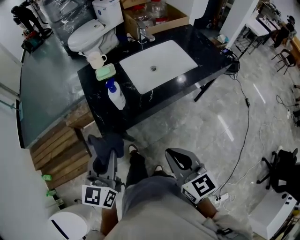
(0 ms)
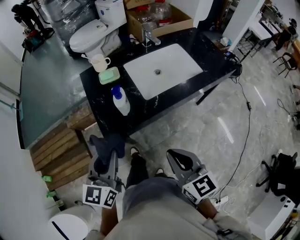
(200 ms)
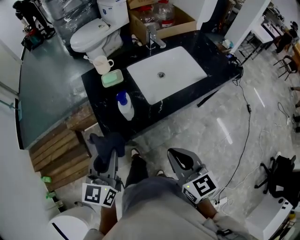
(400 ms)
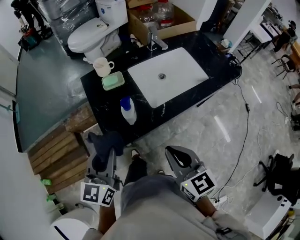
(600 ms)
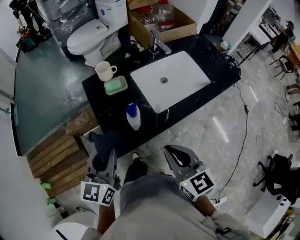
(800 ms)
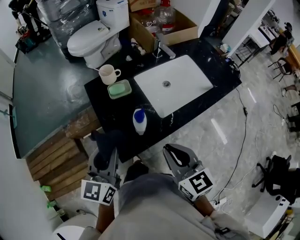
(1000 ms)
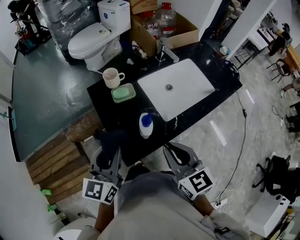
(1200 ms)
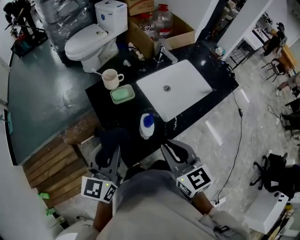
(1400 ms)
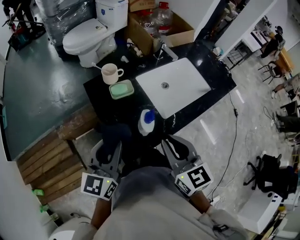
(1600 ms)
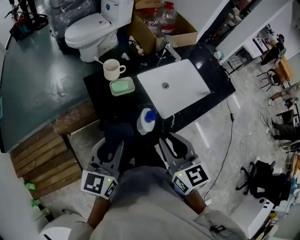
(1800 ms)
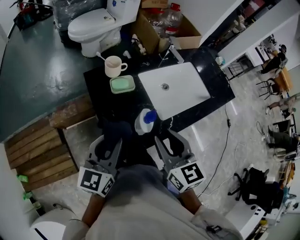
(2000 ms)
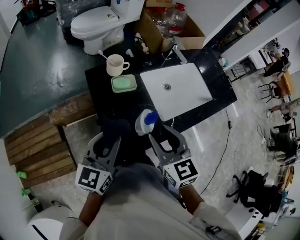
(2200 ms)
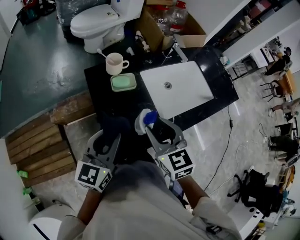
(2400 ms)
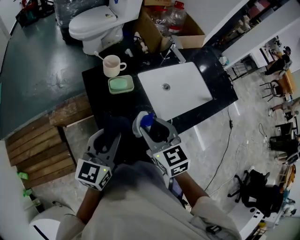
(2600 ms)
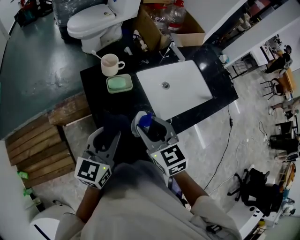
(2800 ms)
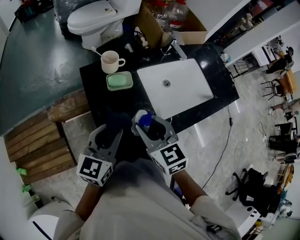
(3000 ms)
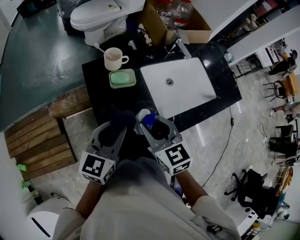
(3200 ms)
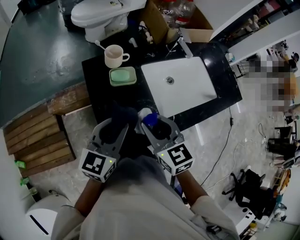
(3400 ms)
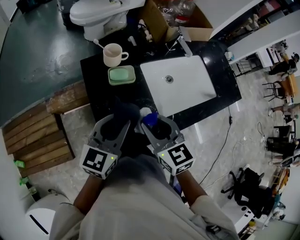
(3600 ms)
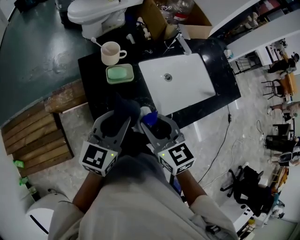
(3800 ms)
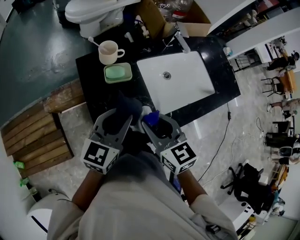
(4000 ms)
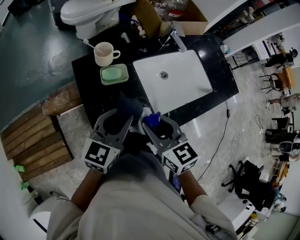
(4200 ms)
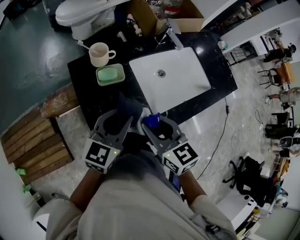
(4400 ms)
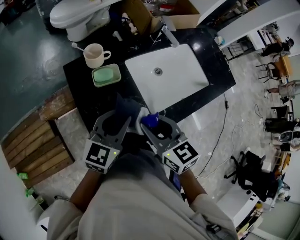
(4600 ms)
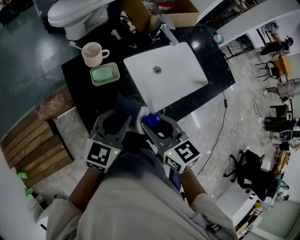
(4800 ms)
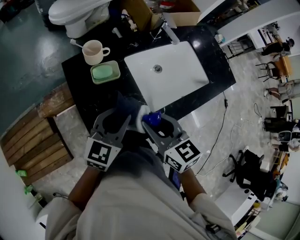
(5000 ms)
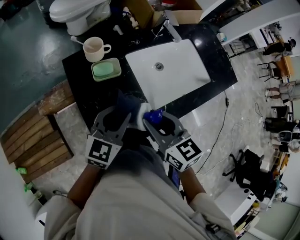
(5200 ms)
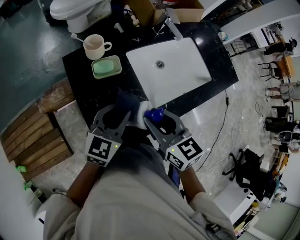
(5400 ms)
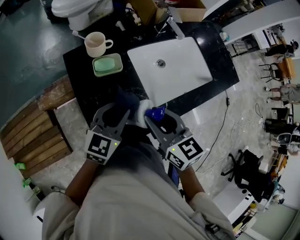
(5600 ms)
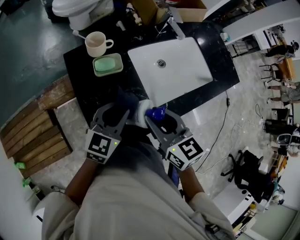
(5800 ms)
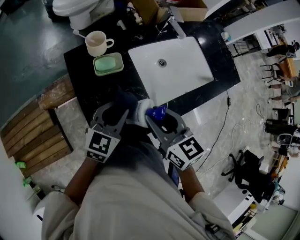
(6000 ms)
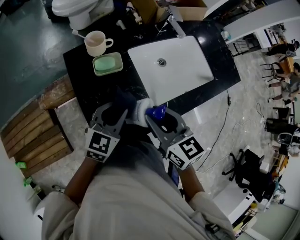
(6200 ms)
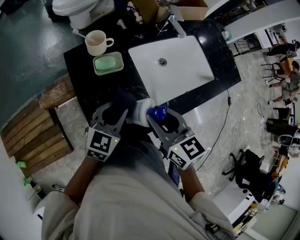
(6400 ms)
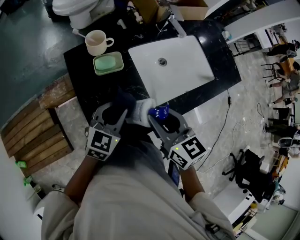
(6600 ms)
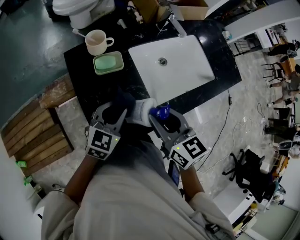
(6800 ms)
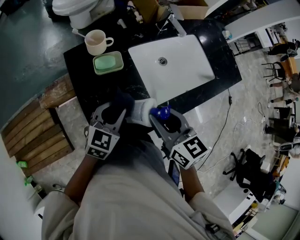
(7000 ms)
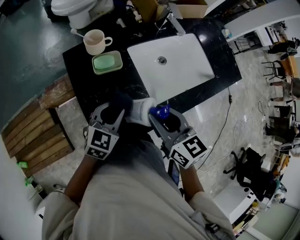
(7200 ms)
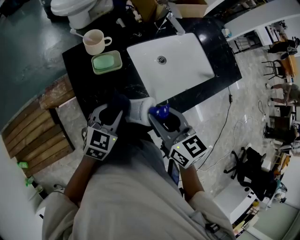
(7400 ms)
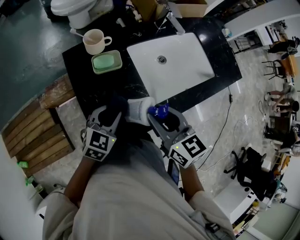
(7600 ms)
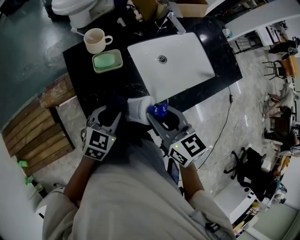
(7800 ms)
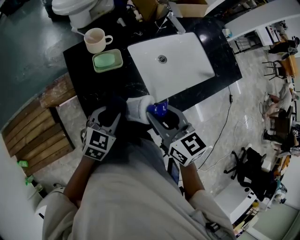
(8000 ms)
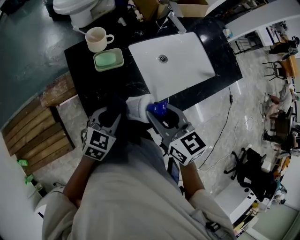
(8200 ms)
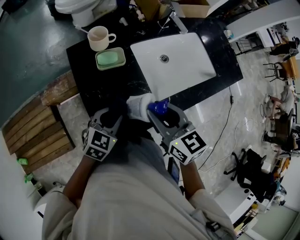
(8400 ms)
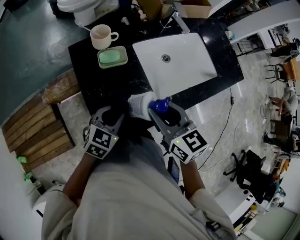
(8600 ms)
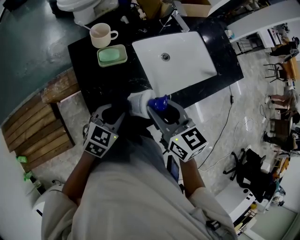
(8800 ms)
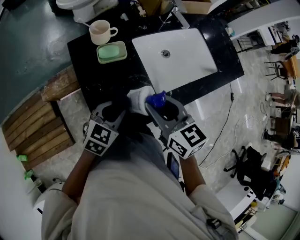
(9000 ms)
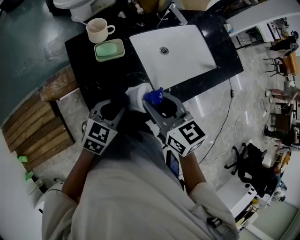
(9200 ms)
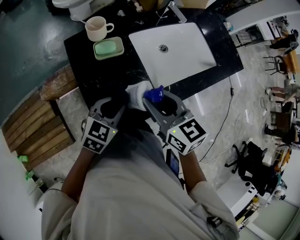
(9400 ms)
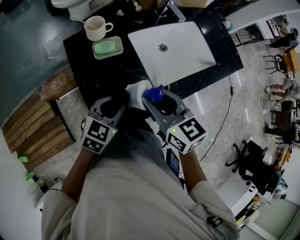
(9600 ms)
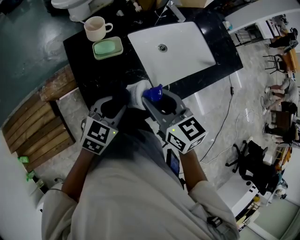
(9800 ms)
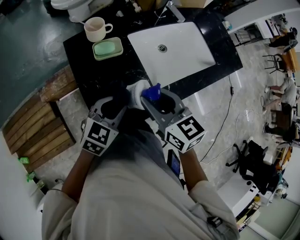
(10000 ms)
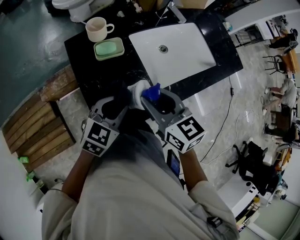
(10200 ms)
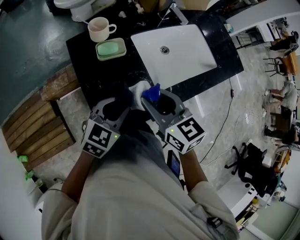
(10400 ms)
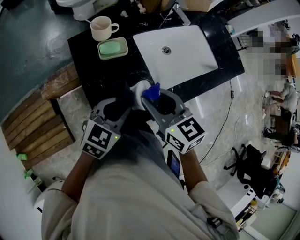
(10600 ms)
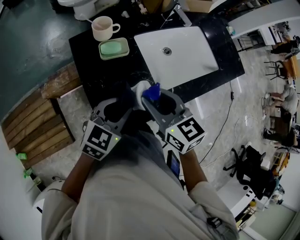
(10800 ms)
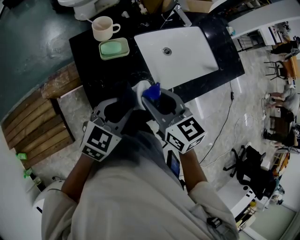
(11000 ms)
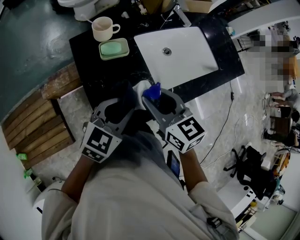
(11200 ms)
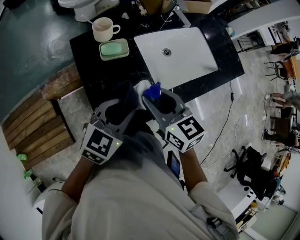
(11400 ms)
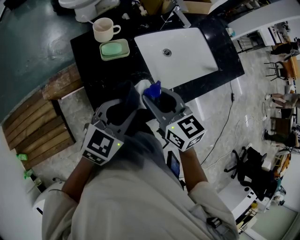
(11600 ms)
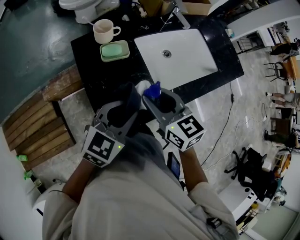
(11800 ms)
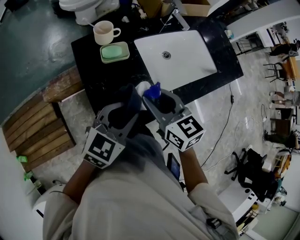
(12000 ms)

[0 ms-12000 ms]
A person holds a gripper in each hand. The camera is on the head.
0 ms to 1600 ms: The two grippers go about 25 cm forward and to the left.
1600 ms to 3000 ms: The left gripper goes roughly 5 cm downward. Meanwhile the right gripper moves forward and downward, approximately 10 cm, and opens up.
3000 ms to 4400 ms: The left gripper shifts roughly 5 cm to the right.
4400 ms to 6000 ms: The left gripper is displaced downward by about 5 cm.
6000 ms to 7600 ms: The left gripper is displaced downward by roughly 5 cm.
7600 ms to 10400 ms: The grippers move only a little.
10400 ms to 12000 ms: The left gripper moves upward, approximately 5 cm.

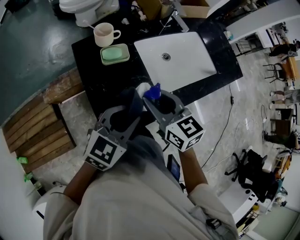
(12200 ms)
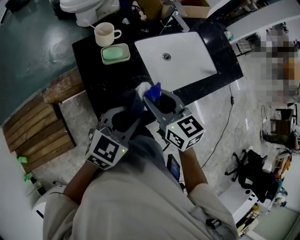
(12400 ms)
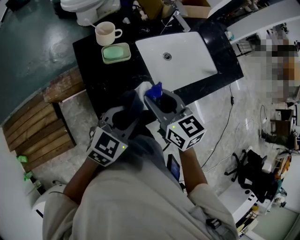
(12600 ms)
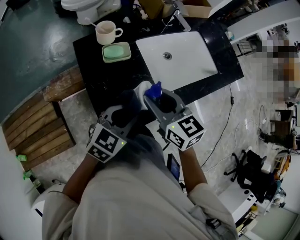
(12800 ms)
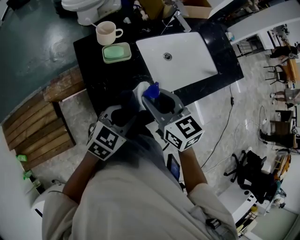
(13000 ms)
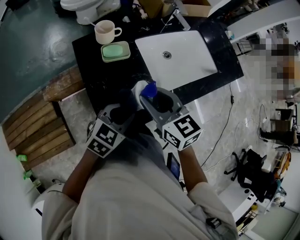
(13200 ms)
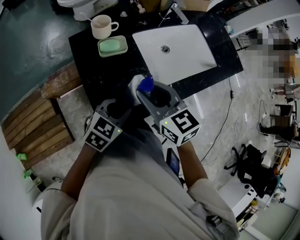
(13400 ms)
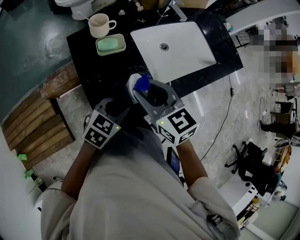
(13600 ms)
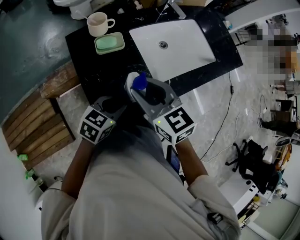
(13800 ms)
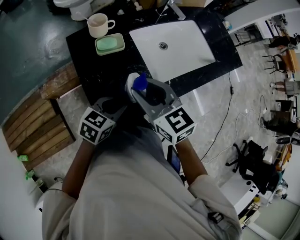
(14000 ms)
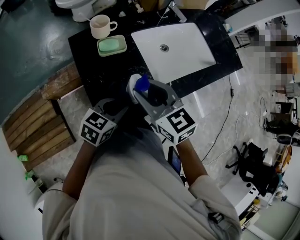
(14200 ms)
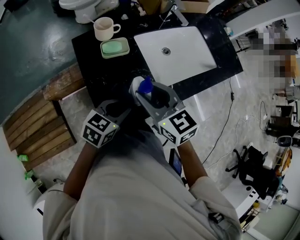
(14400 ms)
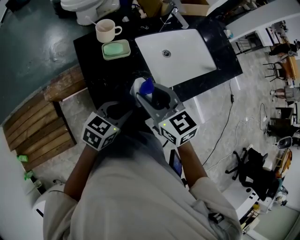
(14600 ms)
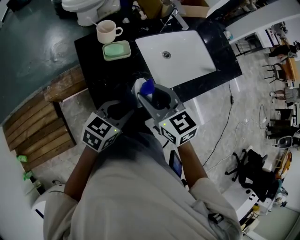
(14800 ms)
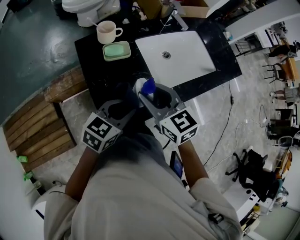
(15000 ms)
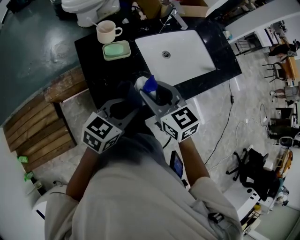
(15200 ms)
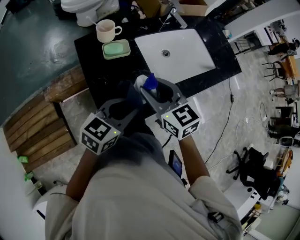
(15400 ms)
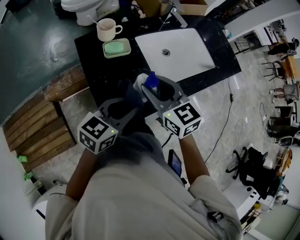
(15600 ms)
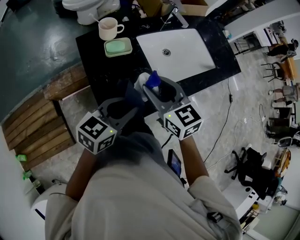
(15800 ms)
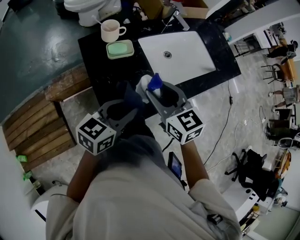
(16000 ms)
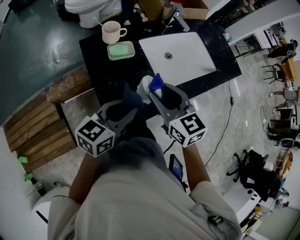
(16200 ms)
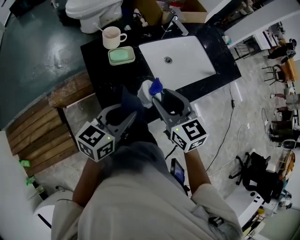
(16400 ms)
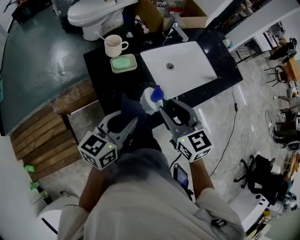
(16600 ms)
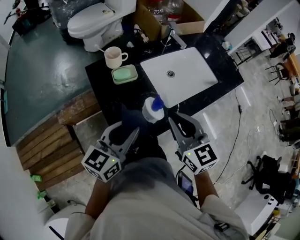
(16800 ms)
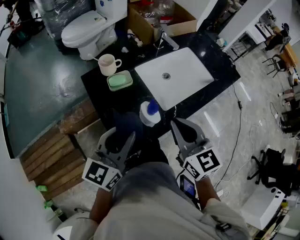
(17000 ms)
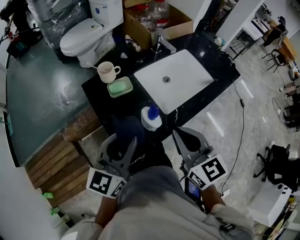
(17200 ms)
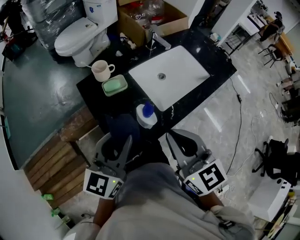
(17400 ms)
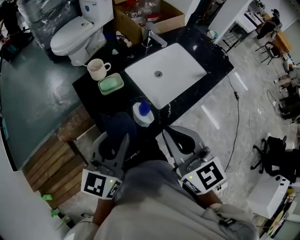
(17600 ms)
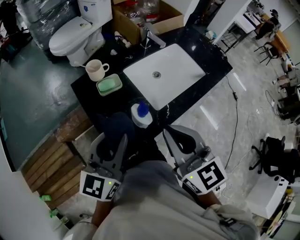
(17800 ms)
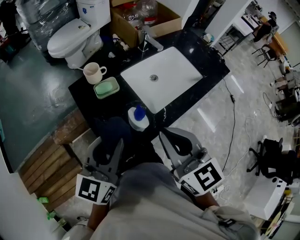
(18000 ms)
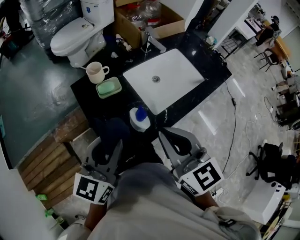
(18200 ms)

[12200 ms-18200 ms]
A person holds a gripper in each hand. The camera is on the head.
12200 ms to 13800 ms: The left gripper moves downward, roughly 10 cm, and turns by approximately 20 degrees.
13800 ms to 15200 ms: The left gripper is displaced upward by approximately 10 cm.
15200 ms to 16600 ms: The right gripper shifts by approximately 5 cm. The left gripper travels upward by approximately 5 cm.
16600 ms to 18200 ms: Both grippers move upward, about 10 cm. The right gripper closes up.

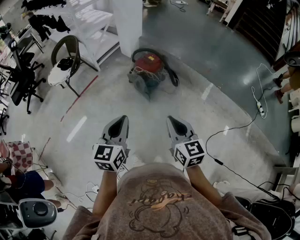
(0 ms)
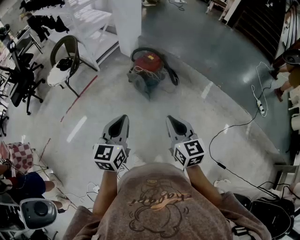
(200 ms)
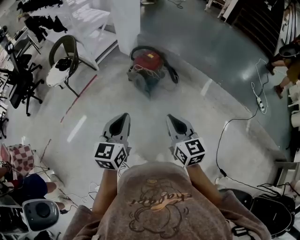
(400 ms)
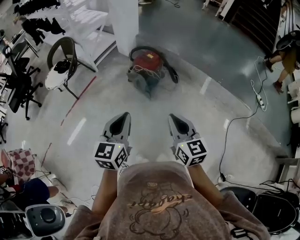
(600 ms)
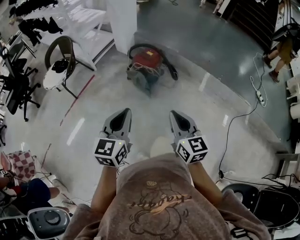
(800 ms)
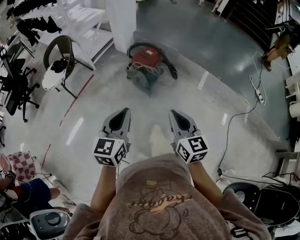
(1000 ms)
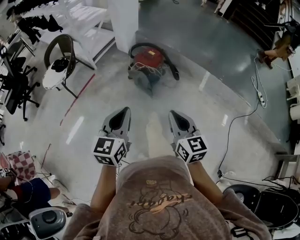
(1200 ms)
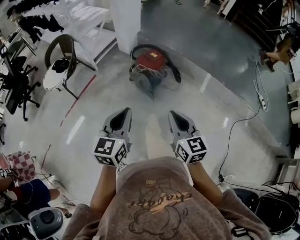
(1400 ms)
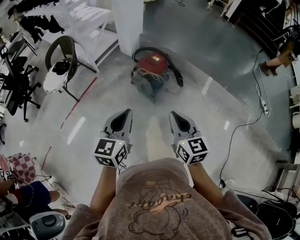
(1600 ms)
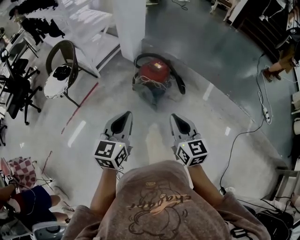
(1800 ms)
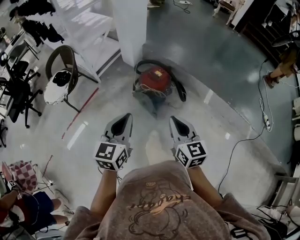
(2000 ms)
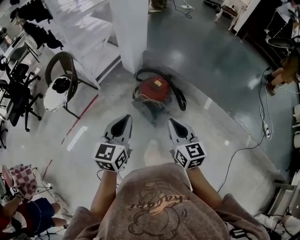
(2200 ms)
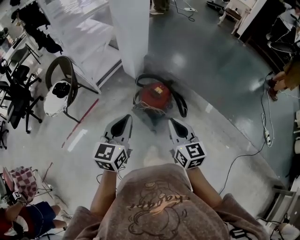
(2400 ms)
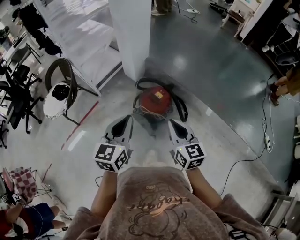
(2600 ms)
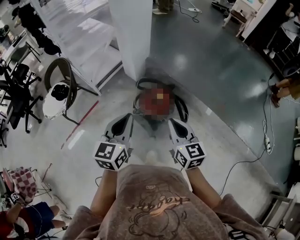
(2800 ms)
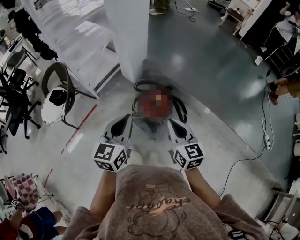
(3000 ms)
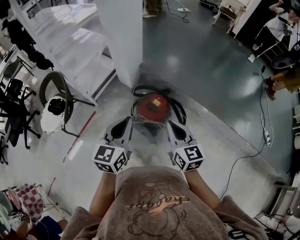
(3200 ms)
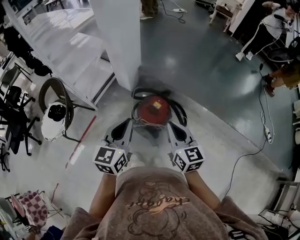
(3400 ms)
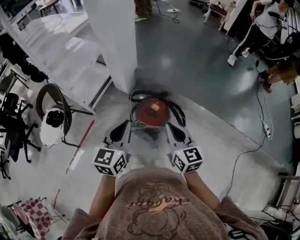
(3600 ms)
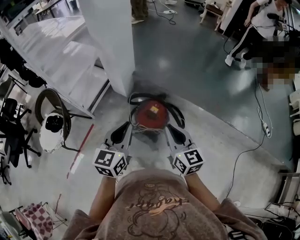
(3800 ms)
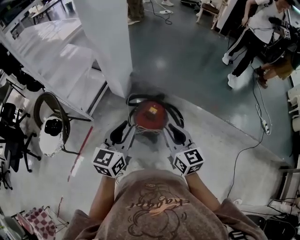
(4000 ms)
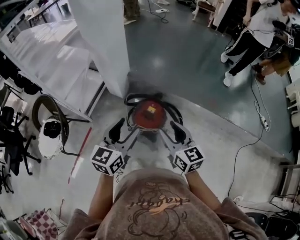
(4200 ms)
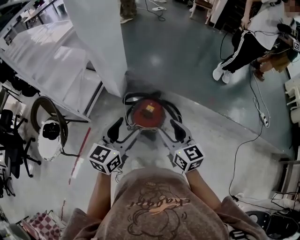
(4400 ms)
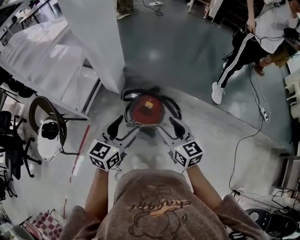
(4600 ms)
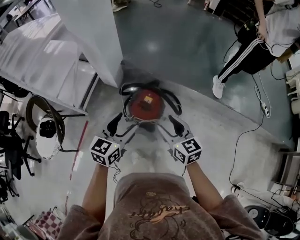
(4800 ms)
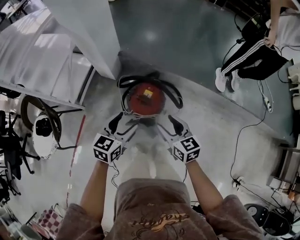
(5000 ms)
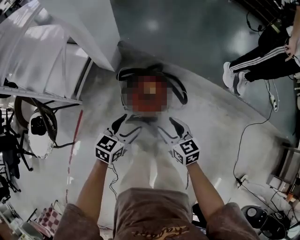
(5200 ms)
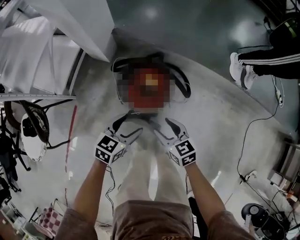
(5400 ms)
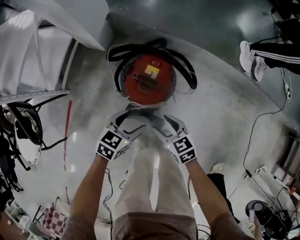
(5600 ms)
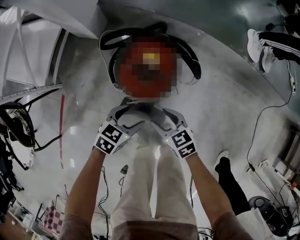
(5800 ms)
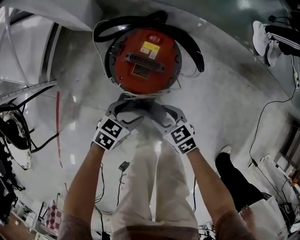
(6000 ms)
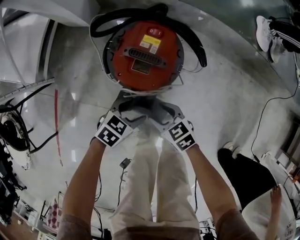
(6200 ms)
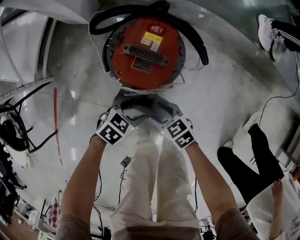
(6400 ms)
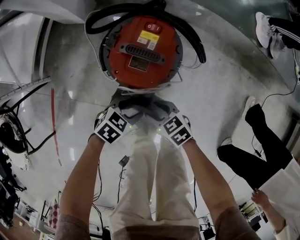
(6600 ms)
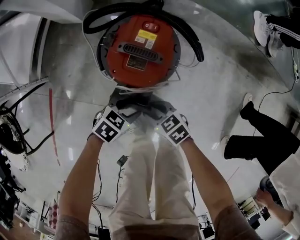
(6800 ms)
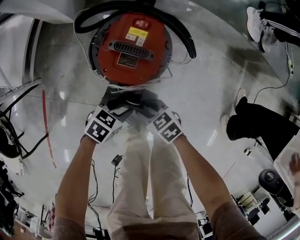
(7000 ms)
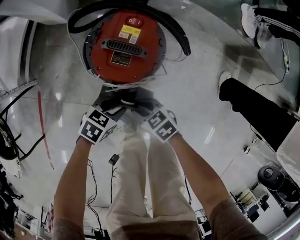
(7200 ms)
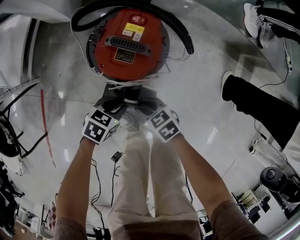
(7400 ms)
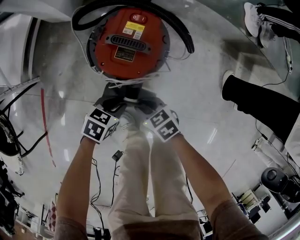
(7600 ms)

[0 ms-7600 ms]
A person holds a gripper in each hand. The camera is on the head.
0 ms to 1600 ms: The two grippers go some 10 cm forward and to the left.
1600 ms to 3000 ms: The grippers both shift forward by some 35 cm.
3000 ms to 4600 ms: The left gripper moves forward, some 5 cm, turns by some 30 degrees, and opens up. Meanwhile the right gripper opens.
4600 ms to 6000 ms: Both grippers move downward, some 50 cm. The right gripper points its fingers some 30 degrees further downward; the left gripper tips its fingers downward by approximately 30 degrees.
6000 ms to 7600 ms: The left gripper moves about 5 cm, and closes up, while the right gripper ends up some 5 cm from where it was, and closes up.
